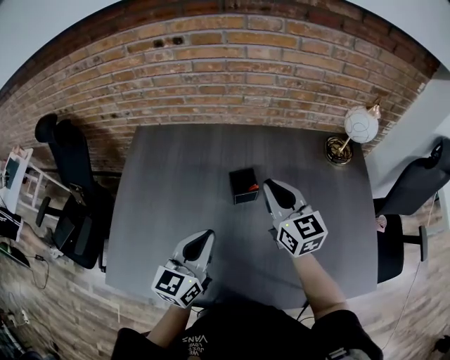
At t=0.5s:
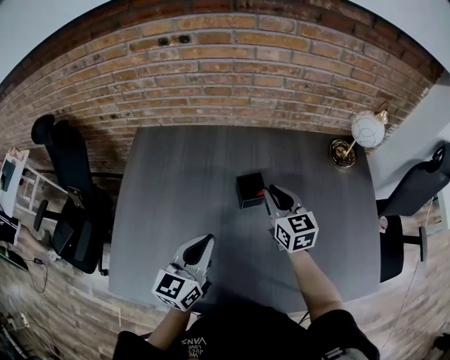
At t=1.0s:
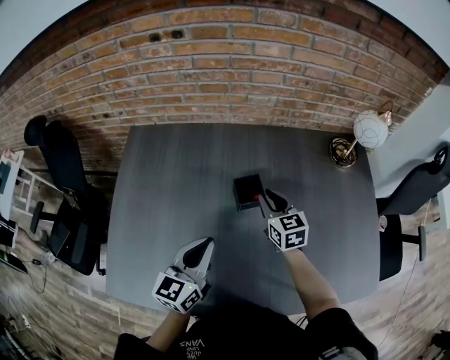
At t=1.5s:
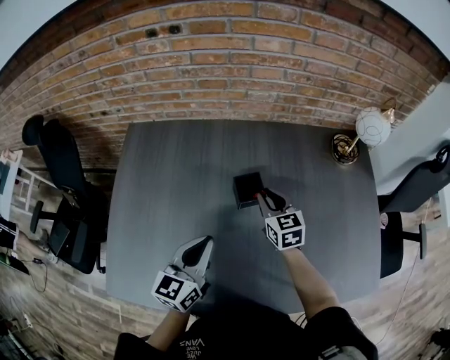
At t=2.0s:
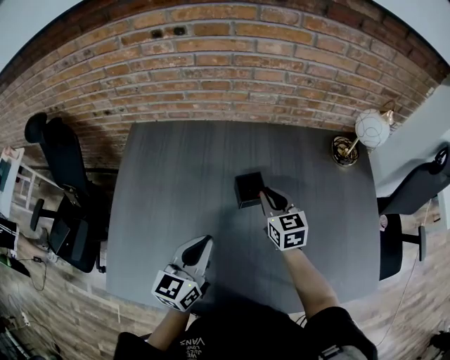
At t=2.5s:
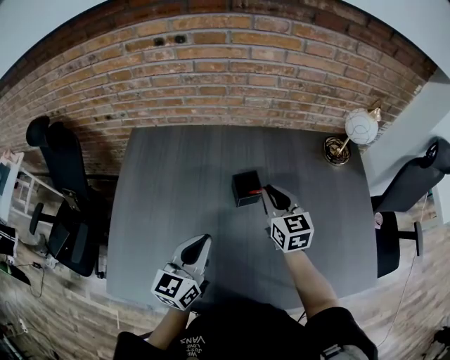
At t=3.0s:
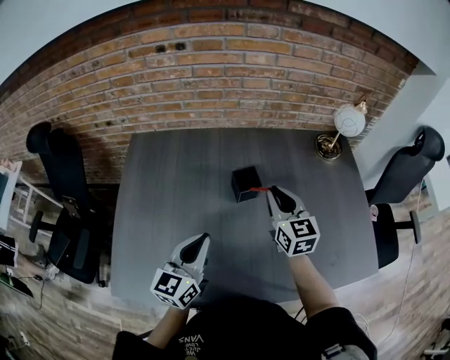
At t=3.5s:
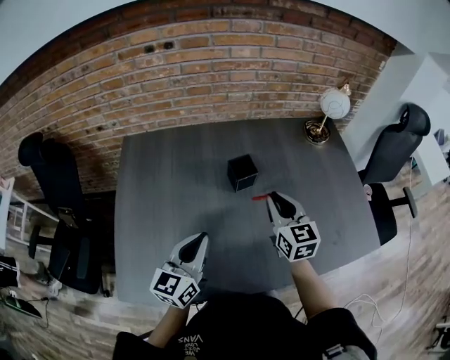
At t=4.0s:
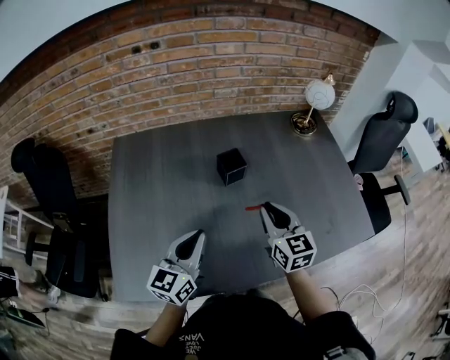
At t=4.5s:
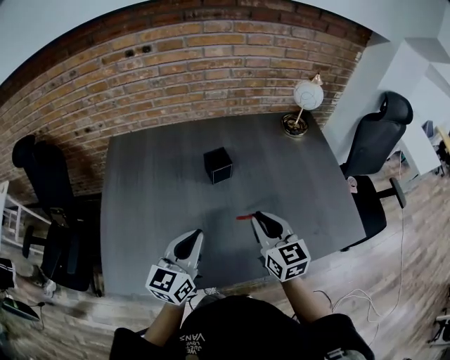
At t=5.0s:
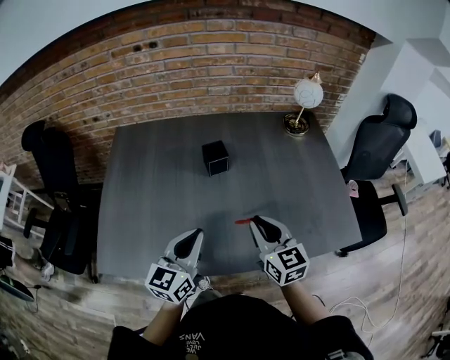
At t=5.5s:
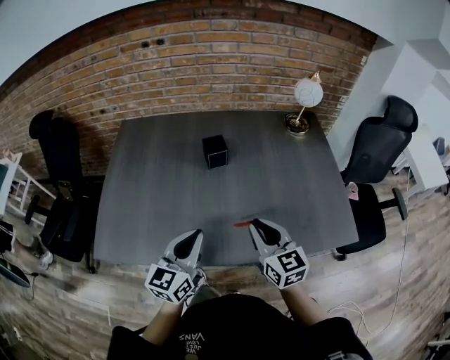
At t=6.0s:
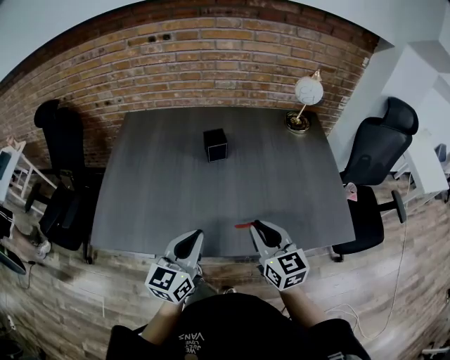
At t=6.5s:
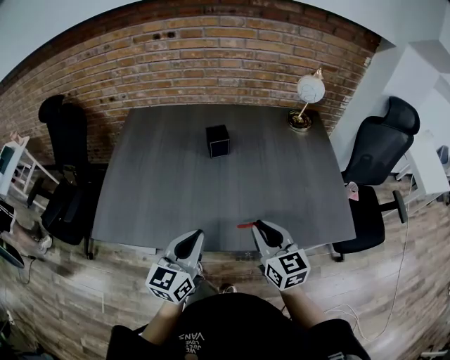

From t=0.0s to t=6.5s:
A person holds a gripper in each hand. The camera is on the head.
From t=0.0s to t=2.0s: The left gripper moves roughly 5 cm. The right gripper travels downward by some 15 cm.
From t=2.0s to t=4.5s: The left gripper goes some 10 cm backward, while the right gripper goes roughly 25 cm backward.
From t=4.5s to t=6.5s: Both grippers travel together backward and to the right, roughly 15 cm.

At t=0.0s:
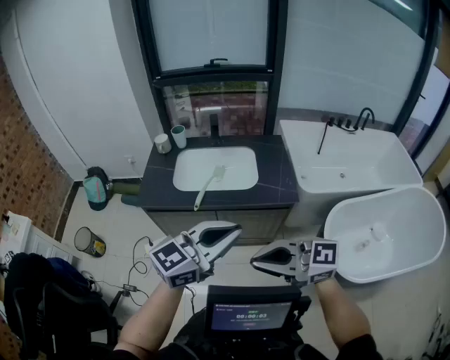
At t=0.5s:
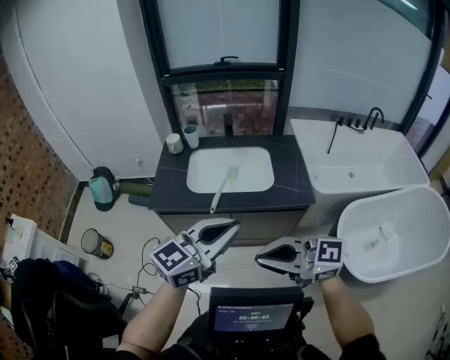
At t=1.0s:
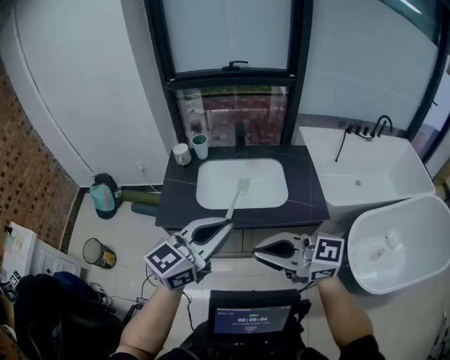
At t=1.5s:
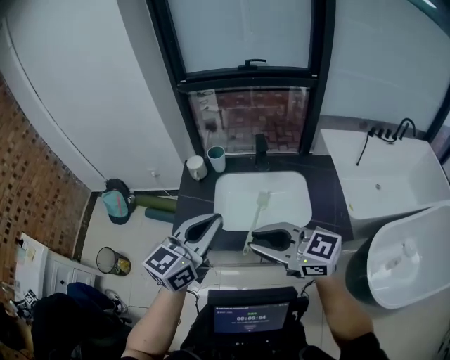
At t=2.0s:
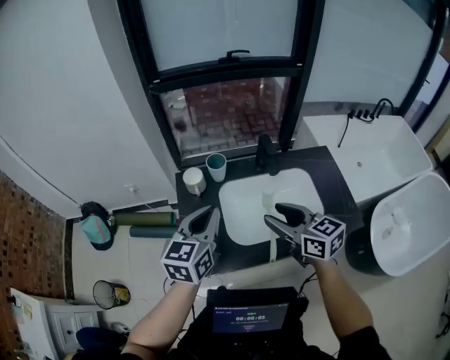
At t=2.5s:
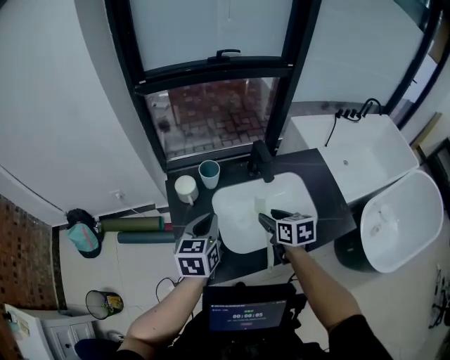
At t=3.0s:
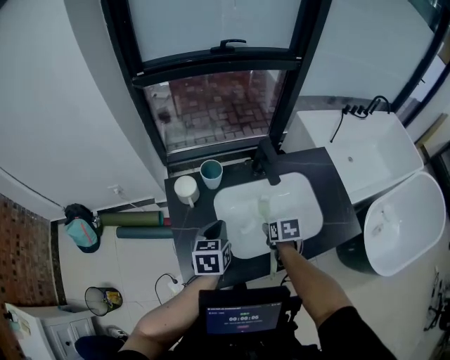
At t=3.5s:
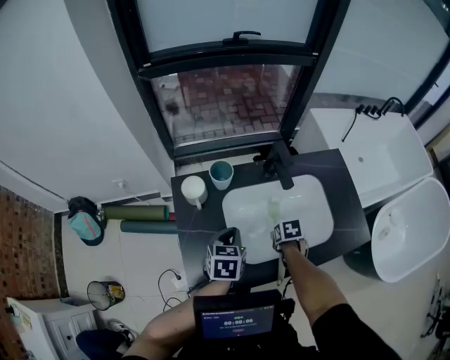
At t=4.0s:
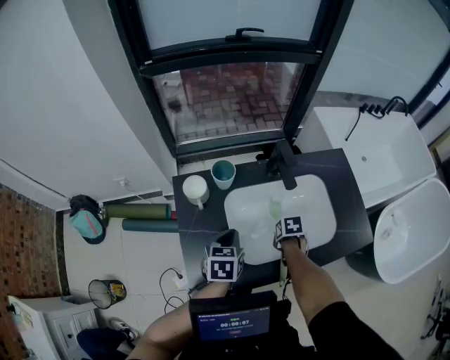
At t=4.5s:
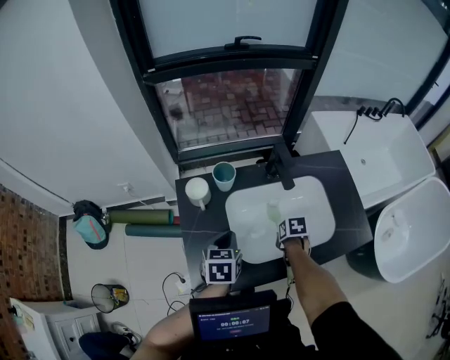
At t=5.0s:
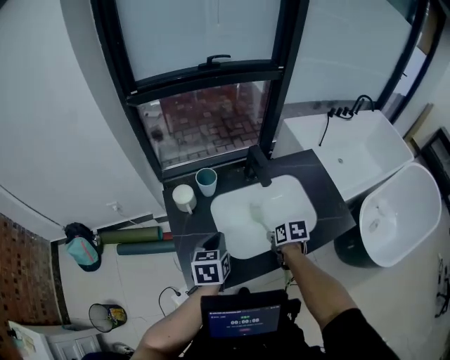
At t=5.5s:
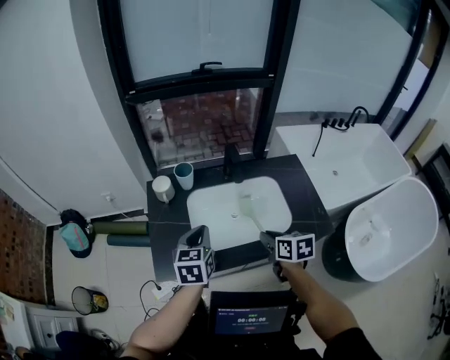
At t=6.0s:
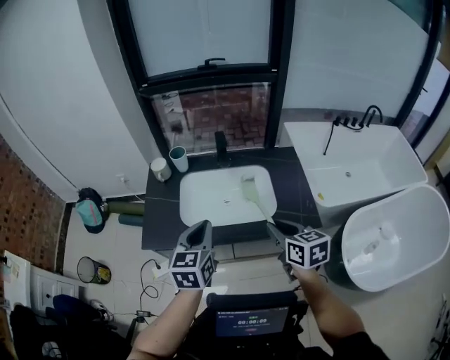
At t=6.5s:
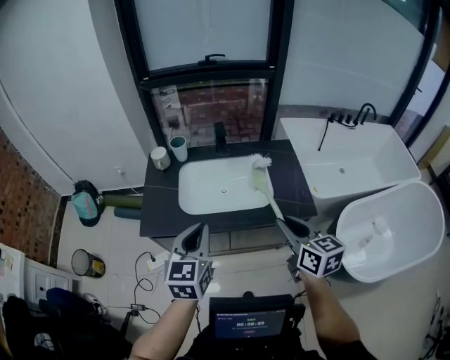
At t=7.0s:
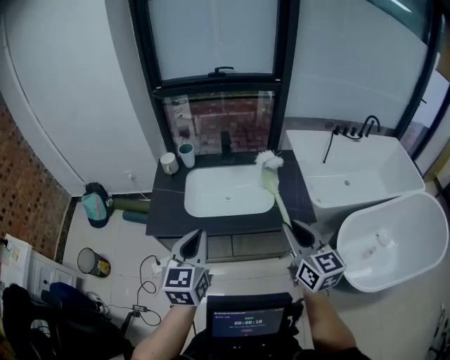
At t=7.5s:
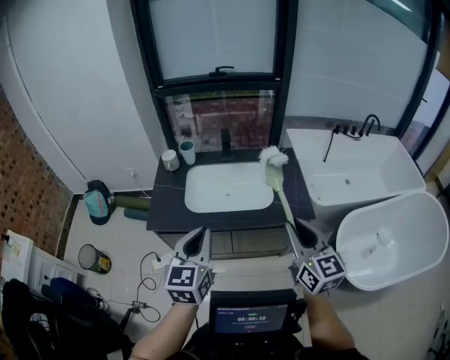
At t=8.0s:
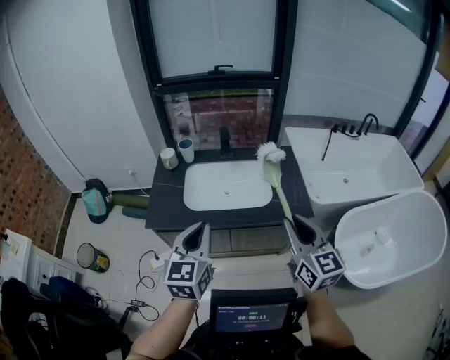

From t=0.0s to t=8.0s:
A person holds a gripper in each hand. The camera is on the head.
From t=0.0s to t=2.0s: The two grippers travel together, about 70 cm. The left gripper rotates roughly 30 degrees. Meanwhile the right gripper changes its angle by approximately 50 degrees, and opens its fingers.
From t=2.0s to t=4.0s: The left gripper goes some 20 cm downward, and swivels some 30 degrees. Meanwhile the right gripper is displaced downward by about 35 cm, angles its fingers downward, by approximately 60 degrees, and closes its fingers.
From t=4.0s to t=6.0s: The right gripper moves some 50 cm, and tips its fingers upward by some 50 degrees; the left gripper shifts by roughly 50 cm, and turns by some 30 degrees.
From t=6.0s to t=8.0s: The left gripper travels backward by about 15 cm; the right gripper goes about 20 cm backward and upward, and changes its angle by some 30 degrees.

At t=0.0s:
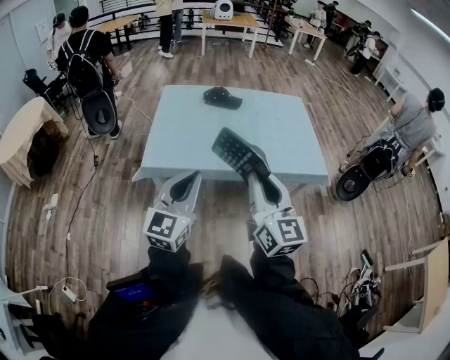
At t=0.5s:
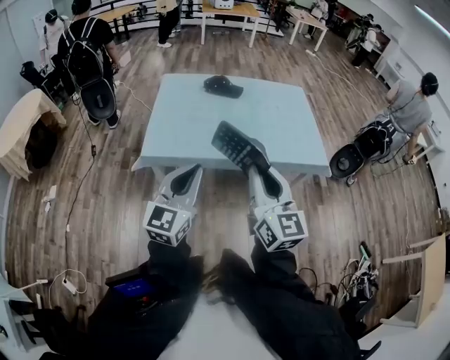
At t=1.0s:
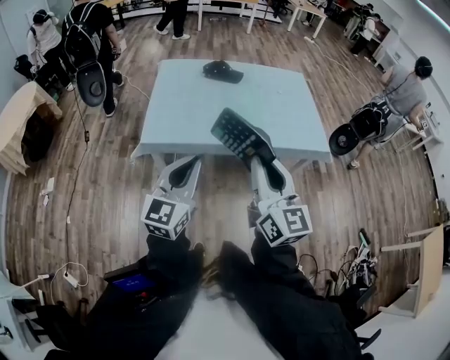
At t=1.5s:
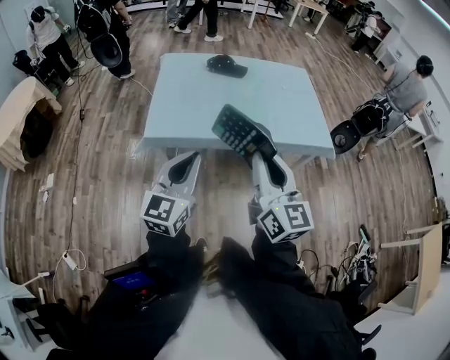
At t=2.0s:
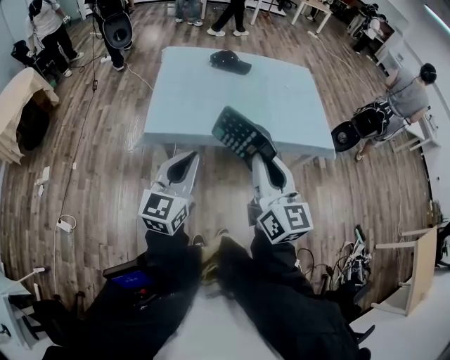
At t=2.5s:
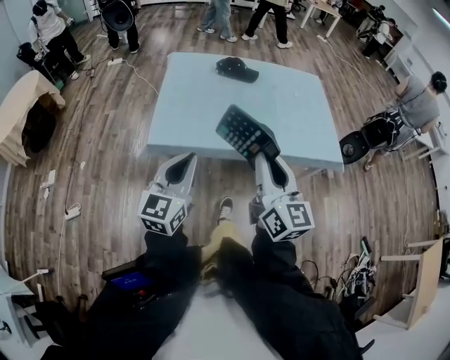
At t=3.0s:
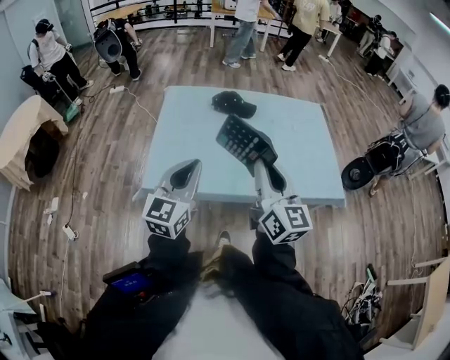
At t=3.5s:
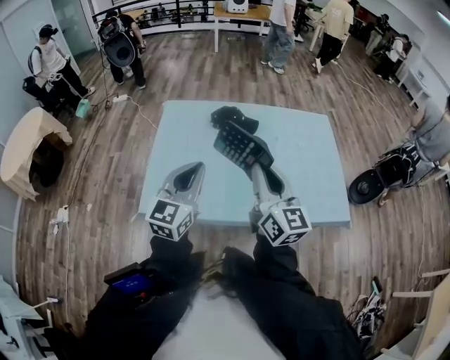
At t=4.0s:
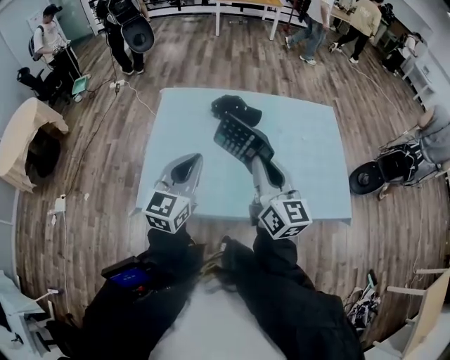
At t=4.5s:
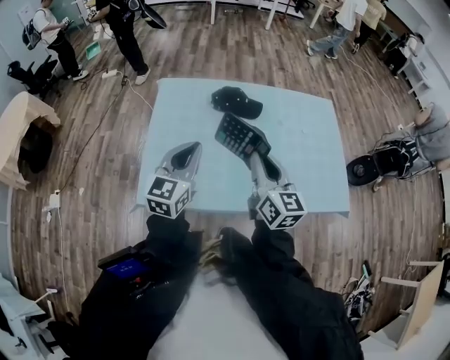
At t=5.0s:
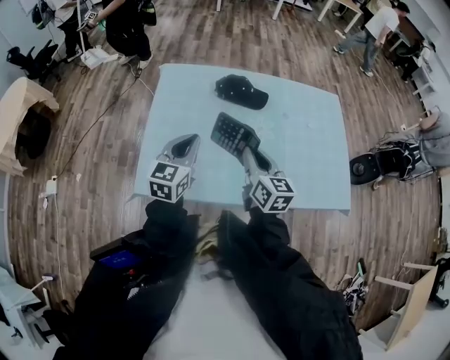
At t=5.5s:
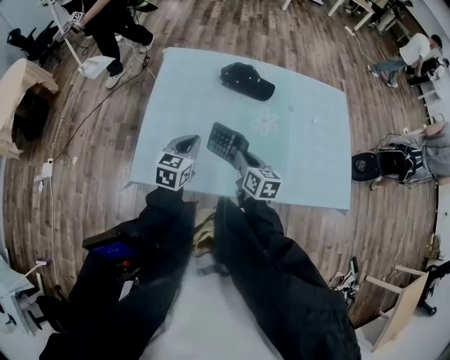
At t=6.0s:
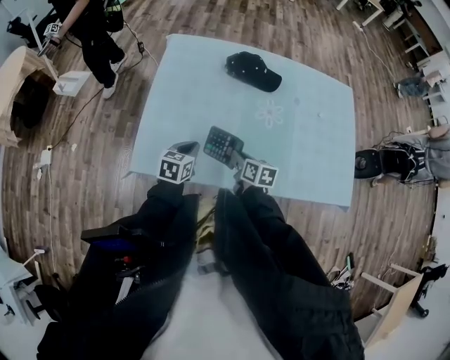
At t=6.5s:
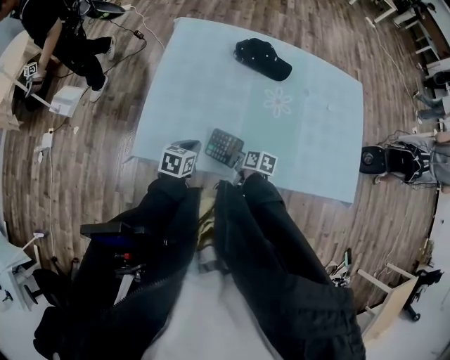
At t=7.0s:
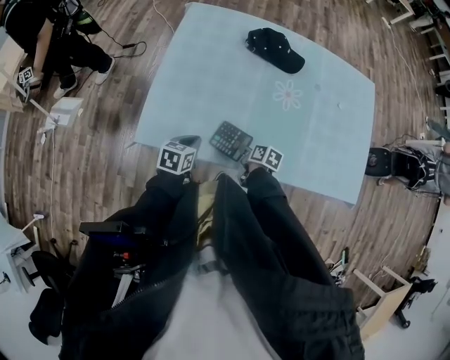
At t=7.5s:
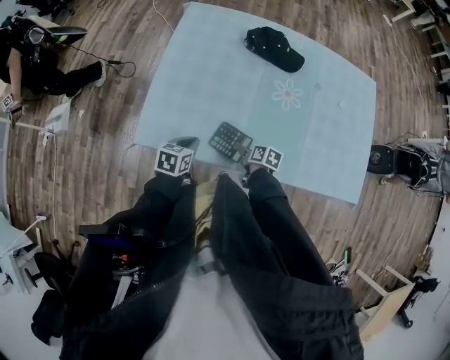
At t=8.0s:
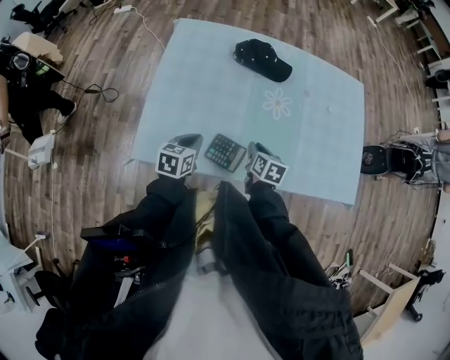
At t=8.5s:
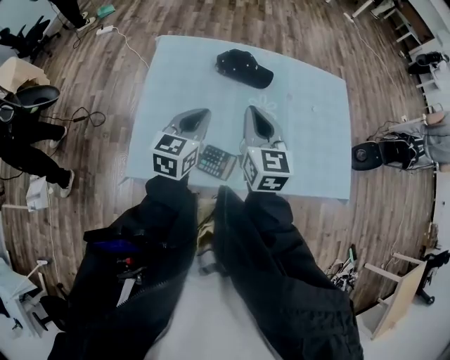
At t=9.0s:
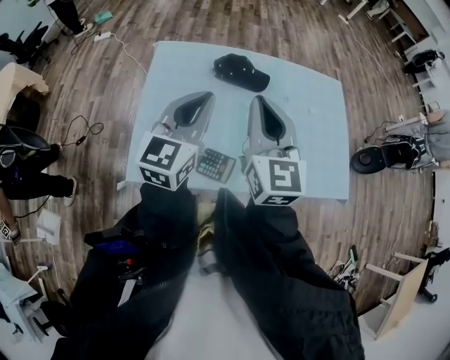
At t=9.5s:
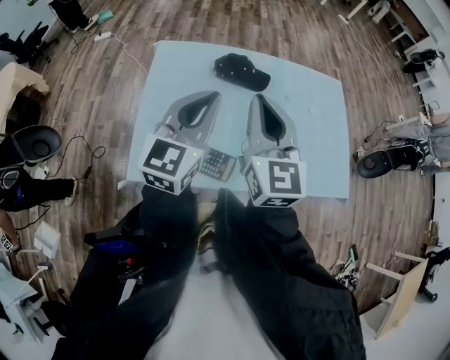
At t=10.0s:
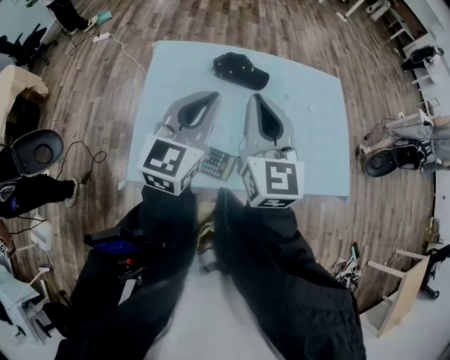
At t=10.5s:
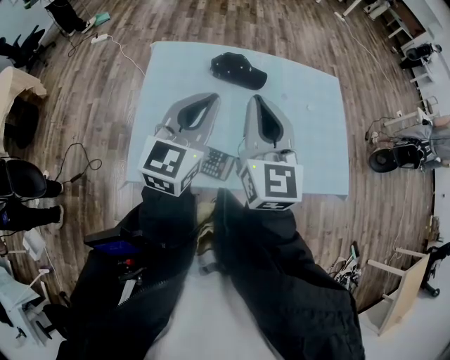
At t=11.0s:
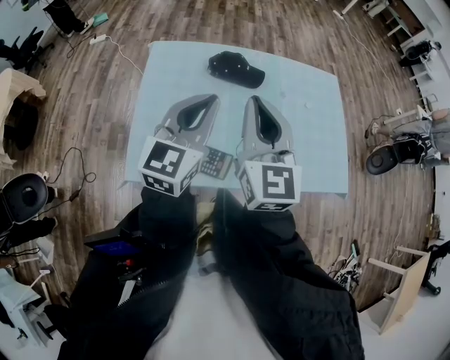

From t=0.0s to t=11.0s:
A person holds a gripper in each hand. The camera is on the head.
From t=0.0s to t=2.0s: The right gripper heads to the left, covering about 5 cm. The left gripper is displaced to the left and downward by about 10 cm.
From t=2.0s to t=3.5s: Both grippers travel together forward, some 35 cm.
From t=3.5s to t=5.5s: The left gripper shifts approximately 25 cm downward and forward, and swivels roughly 30 degrees. Meanwhile the right gripper travels downward by approximately 25 cm, and tilts its fingers some 40 degrees downward.
From t=5.5s to t=7.5s: The right gripper is displaced downward by about 20 cm, and changes its angle by approximately 40 degrees. Meanwhile the left gripper heads downward and backward, covering roughly 15 cm, and changes its angle by some 30 degrees.
From t=7.5s to t=9.0s: Both grippers move upward, approximately 40 cm. The left gripper tips its fingers upward by roughly 50 degrees. Meanwhile the right gripper tips its fingers upward by approximately 50 degrees, and closes its fingers.
From t=9.0s to t=11.0s: The grippers move only a little.

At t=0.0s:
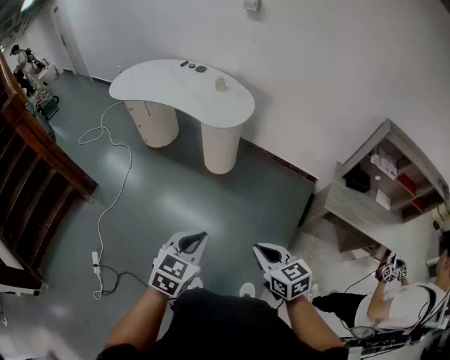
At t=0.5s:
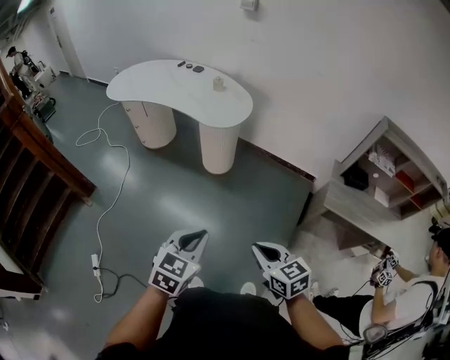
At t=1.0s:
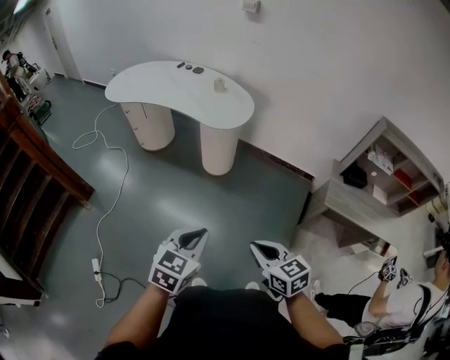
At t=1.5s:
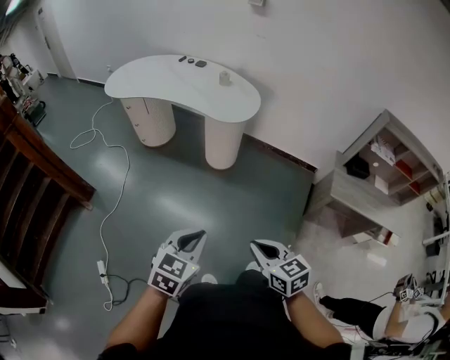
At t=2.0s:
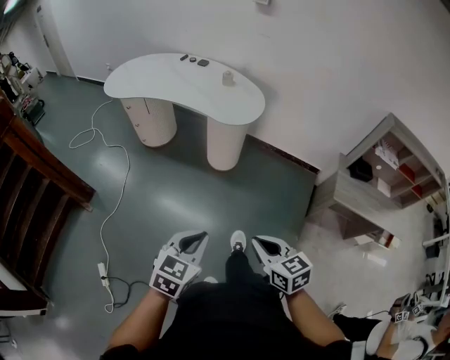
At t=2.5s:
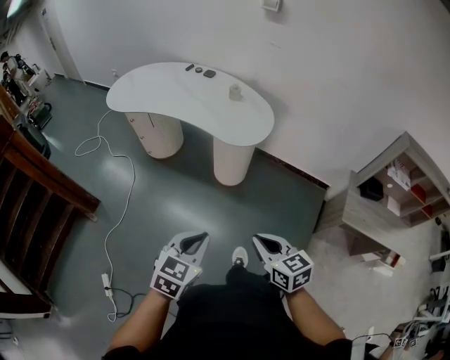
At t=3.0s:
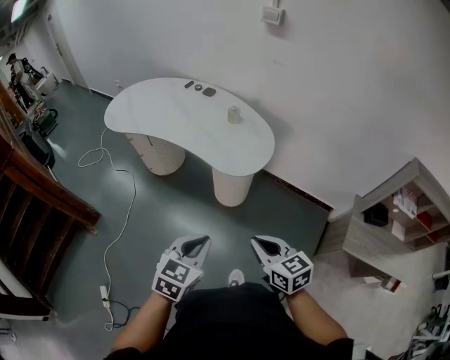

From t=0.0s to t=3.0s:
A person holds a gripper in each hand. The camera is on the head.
From t=0.0s to t=1.5s: Both grippers travel together to the left, some 15 cm.
From t=1.5s to t=3.0s: The two grippers go approximately 30 cm forward.
